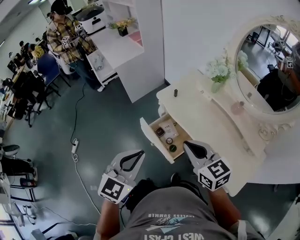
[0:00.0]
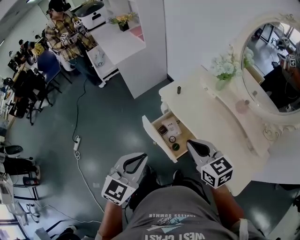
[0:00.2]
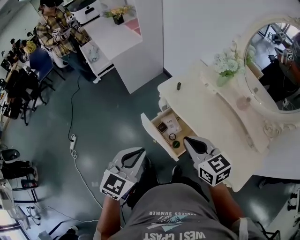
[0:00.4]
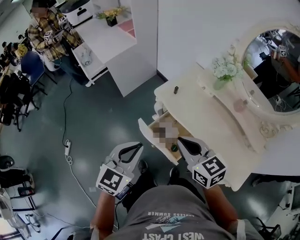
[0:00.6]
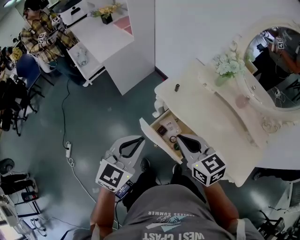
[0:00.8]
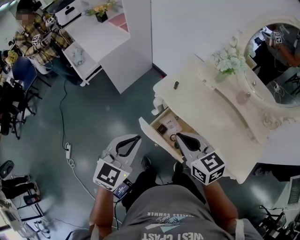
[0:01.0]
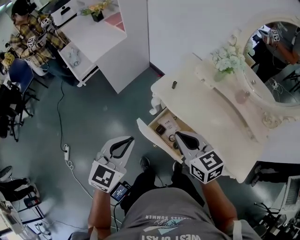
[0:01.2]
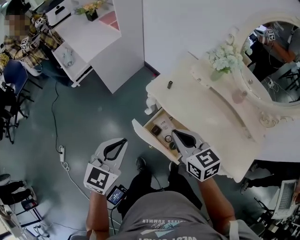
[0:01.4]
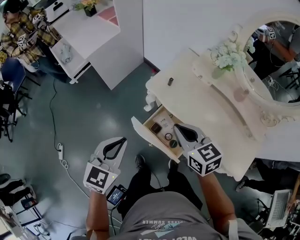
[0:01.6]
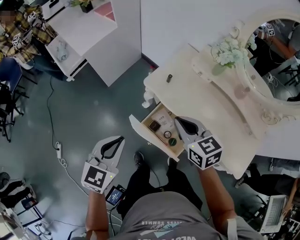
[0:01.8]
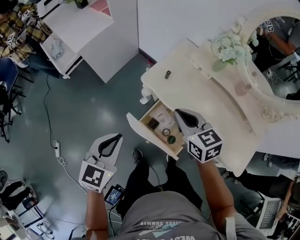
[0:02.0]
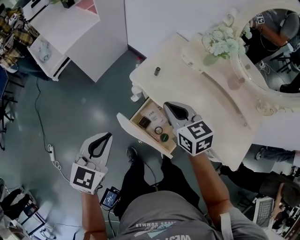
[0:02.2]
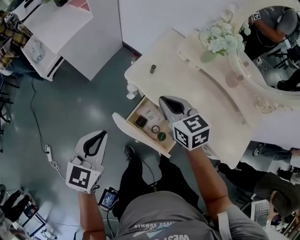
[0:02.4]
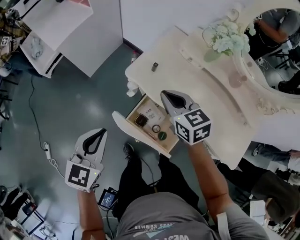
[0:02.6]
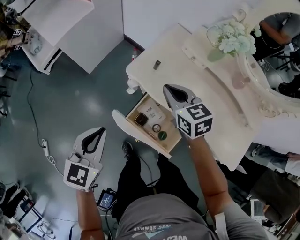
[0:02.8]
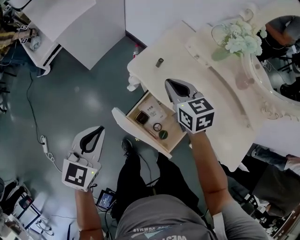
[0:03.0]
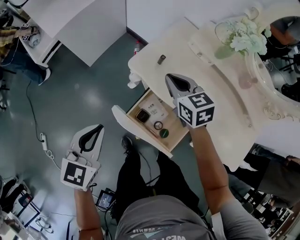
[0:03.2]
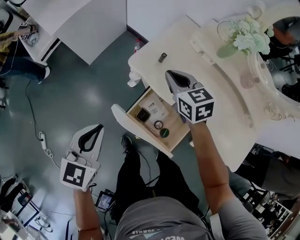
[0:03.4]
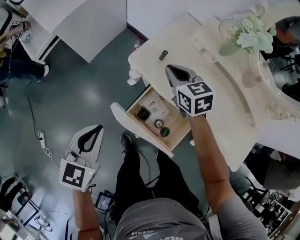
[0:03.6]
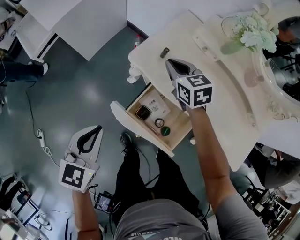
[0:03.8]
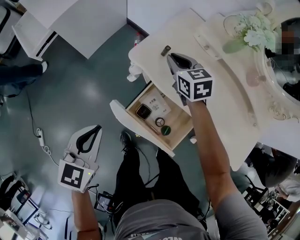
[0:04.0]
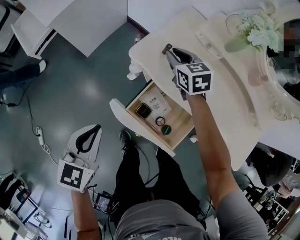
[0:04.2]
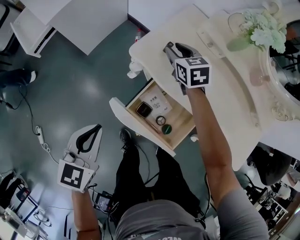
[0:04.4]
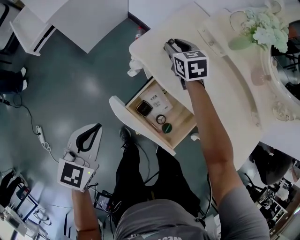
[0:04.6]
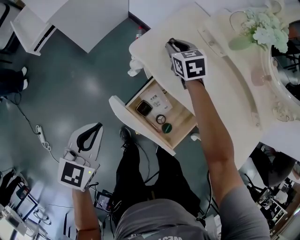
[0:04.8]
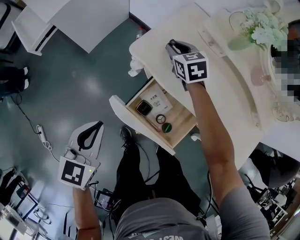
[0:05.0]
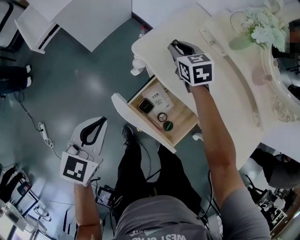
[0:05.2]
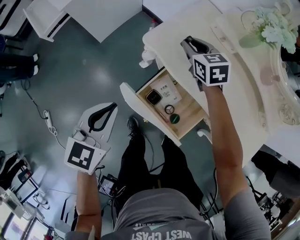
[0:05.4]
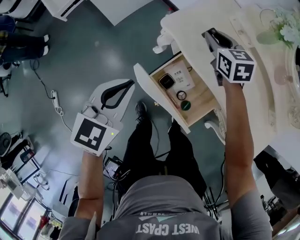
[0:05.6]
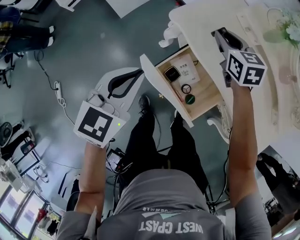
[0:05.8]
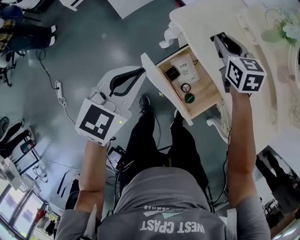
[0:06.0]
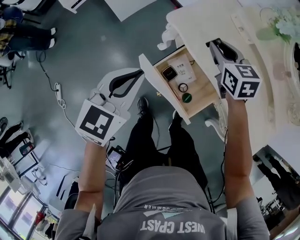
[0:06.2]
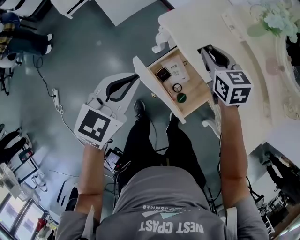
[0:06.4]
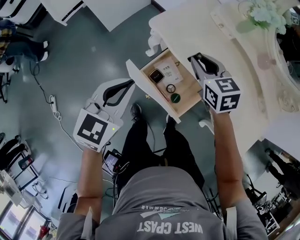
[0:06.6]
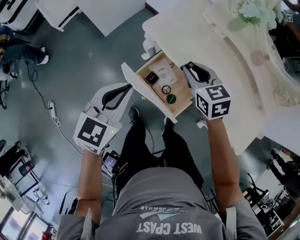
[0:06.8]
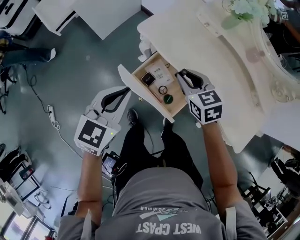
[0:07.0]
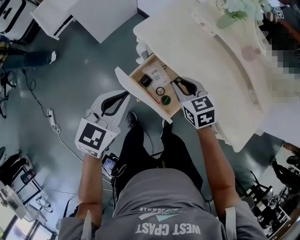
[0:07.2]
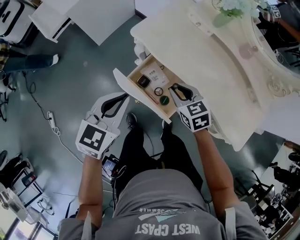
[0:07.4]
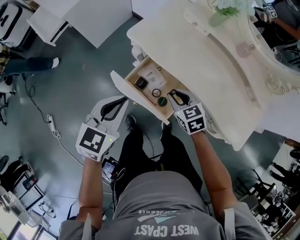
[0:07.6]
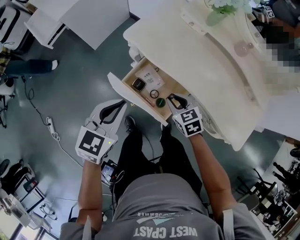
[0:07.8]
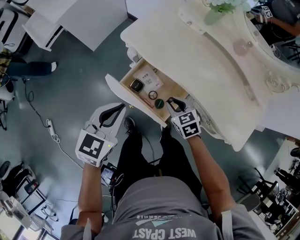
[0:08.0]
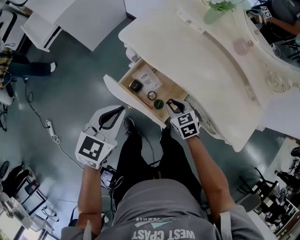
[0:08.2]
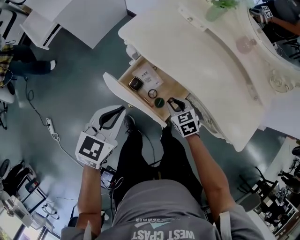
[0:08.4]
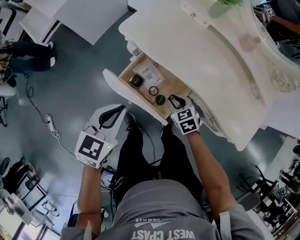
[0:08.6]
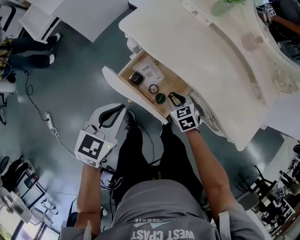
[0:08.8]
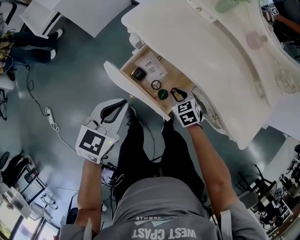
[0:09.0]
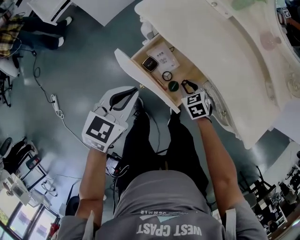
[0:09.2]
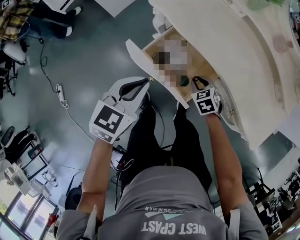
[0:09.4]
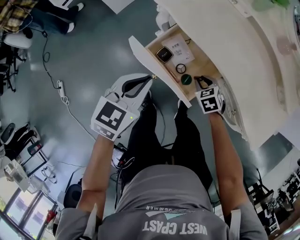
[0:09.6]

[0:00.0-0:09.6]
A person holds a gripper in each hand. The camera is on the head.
0:00.0 to 0:01.6: The left gripper moves forward, to the left and downward, approximately 25 cm. Meanwhile the right gripper heads forward, downward and to the left, covering approximately 20 cm.
0:01.6 to 0:03.2: The right gripper heads forward and downward, covering some 25 cm. Meanwhile the left gripper moves downward and forward, about 15 cm.
0:03.2 to 0:04.8: The right gripper moves downward and forward, about 15 cm, and opens. Meanwhile the left gripper heads downward, covering about 5 cm.
0:04.8 to 0:06.4: The left gripper moves upward and to the right, some 10 cm. The right gripper moves backward and upward, approximately 20 cm.
0:06.4 to 0:08.0: The right gripper travels backward and downward by some 25 cm, while the left gripper goes approximately 10 cm to the right and backward.
0:08.0 to 0:09.6: The left gripper moves downward, approximately 5 cm. The right gripper shifts approximately 10 cm downward.

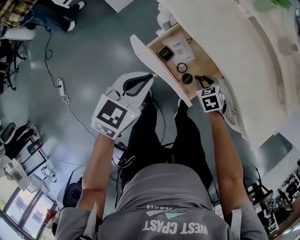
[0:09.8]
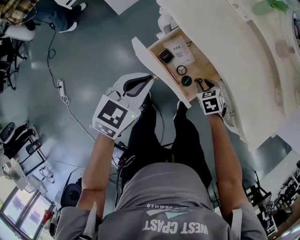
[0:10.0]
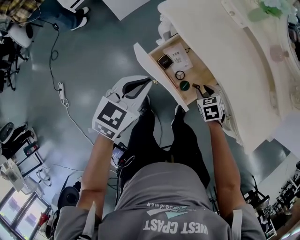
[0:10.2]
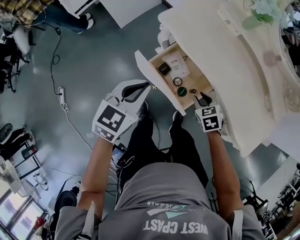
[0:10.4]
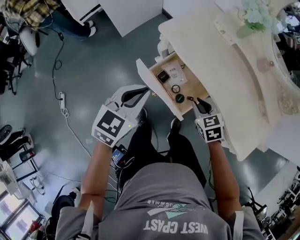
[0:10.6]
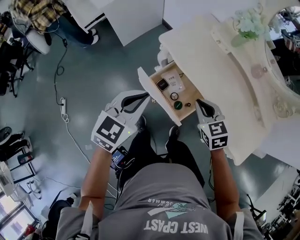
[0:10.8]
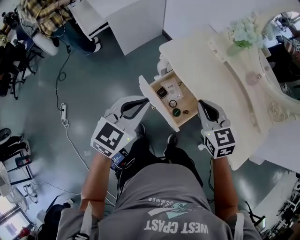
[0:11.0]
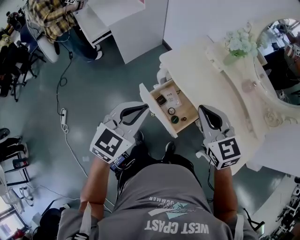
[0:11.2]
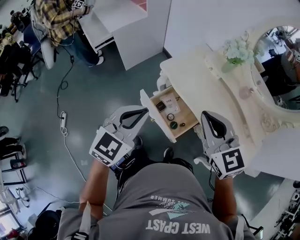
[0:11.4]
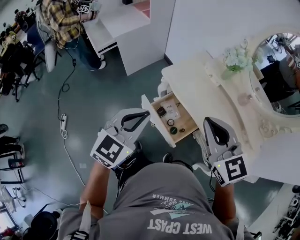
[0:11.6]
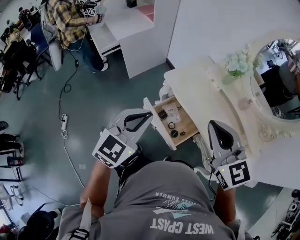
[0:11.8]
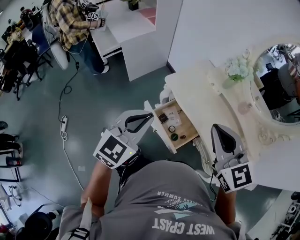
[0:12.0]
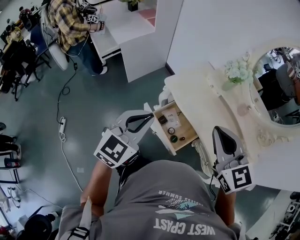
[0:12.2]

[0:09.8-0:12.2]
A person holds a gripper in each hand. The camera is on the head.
0:09.8 to 0:11.0: The left gripper is displaced upward by roughly 20 cm; the right gripper travels upward by approximately 35 cm, tips its fingers upward by some 40 degrees, and closes its fingers.
0:11.0 to 0:12.2: The right gripper shifts about 20 cm upward. Meanwhile the left gripper heads upward, covering about 10 cm.

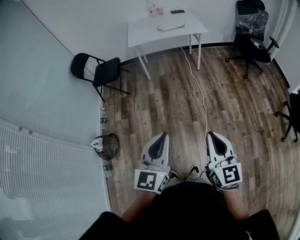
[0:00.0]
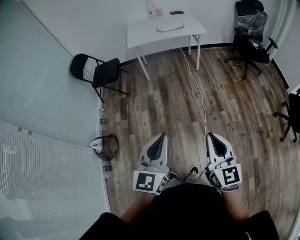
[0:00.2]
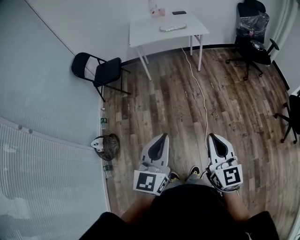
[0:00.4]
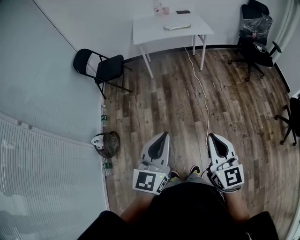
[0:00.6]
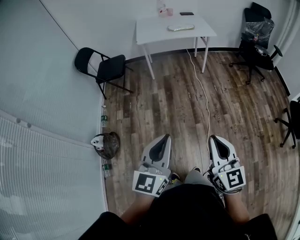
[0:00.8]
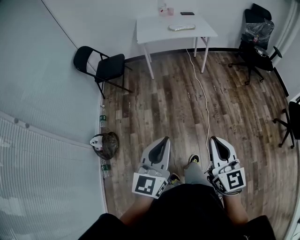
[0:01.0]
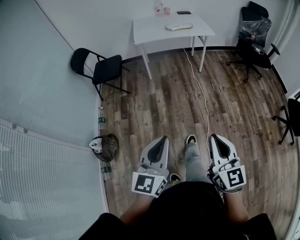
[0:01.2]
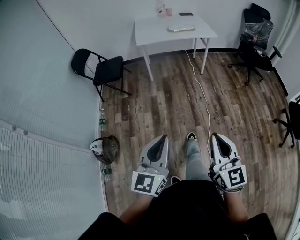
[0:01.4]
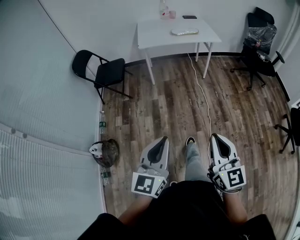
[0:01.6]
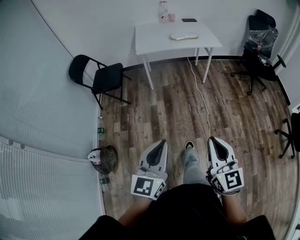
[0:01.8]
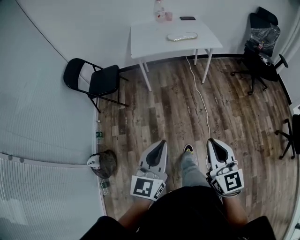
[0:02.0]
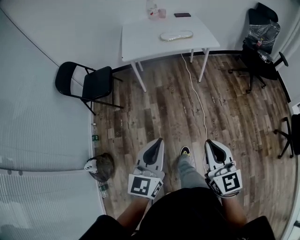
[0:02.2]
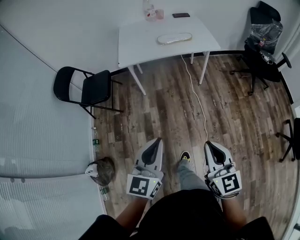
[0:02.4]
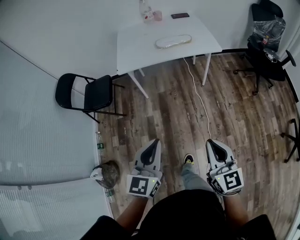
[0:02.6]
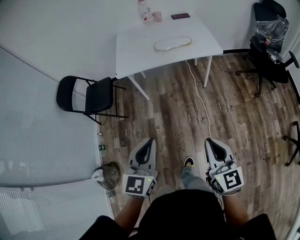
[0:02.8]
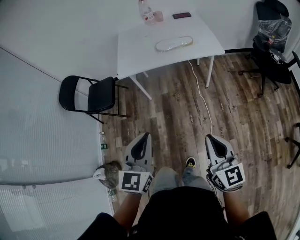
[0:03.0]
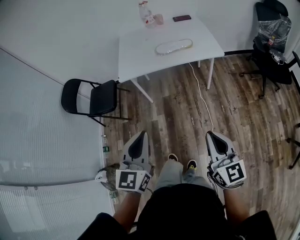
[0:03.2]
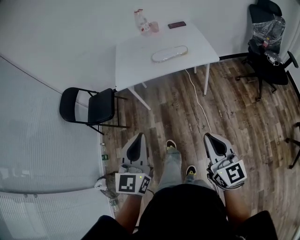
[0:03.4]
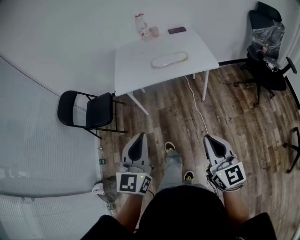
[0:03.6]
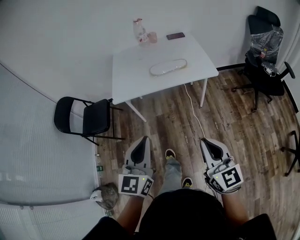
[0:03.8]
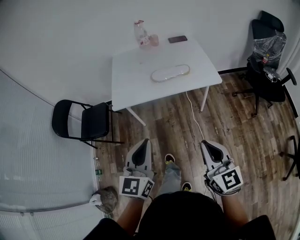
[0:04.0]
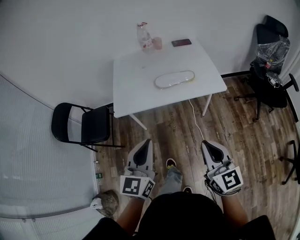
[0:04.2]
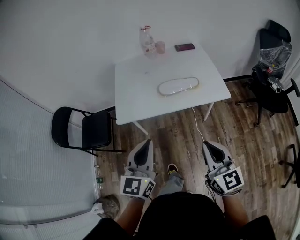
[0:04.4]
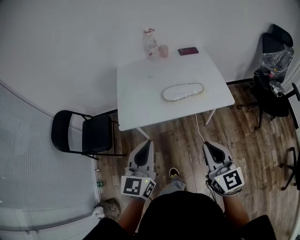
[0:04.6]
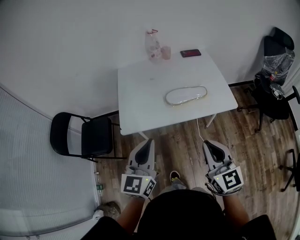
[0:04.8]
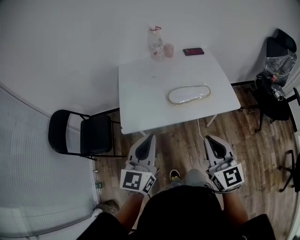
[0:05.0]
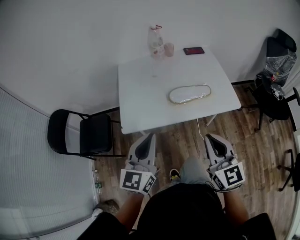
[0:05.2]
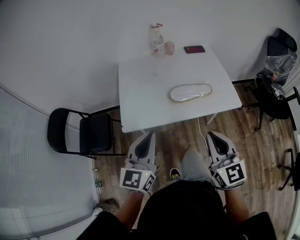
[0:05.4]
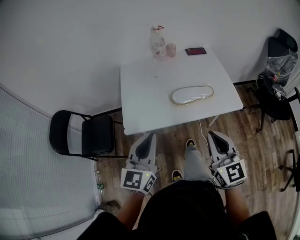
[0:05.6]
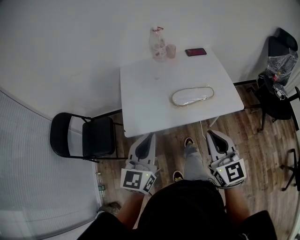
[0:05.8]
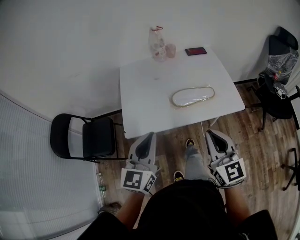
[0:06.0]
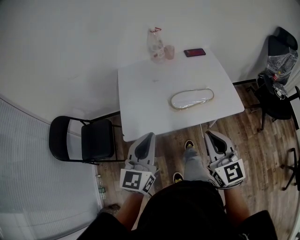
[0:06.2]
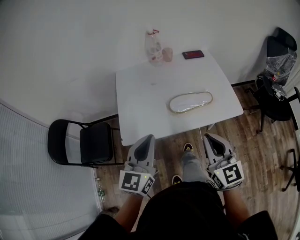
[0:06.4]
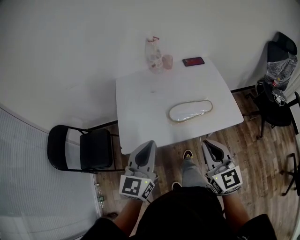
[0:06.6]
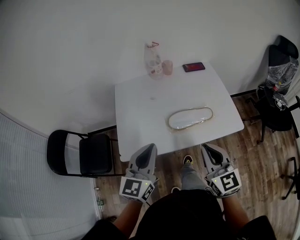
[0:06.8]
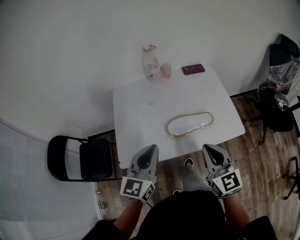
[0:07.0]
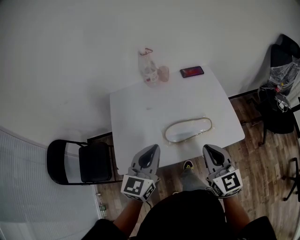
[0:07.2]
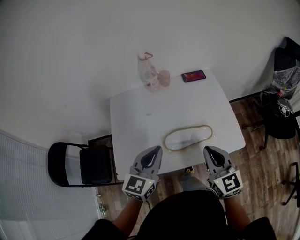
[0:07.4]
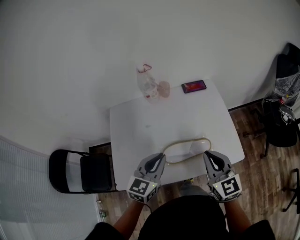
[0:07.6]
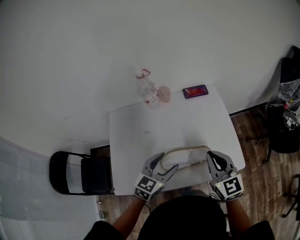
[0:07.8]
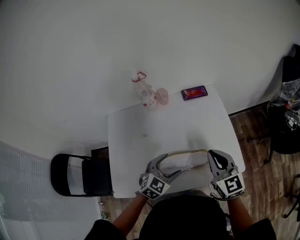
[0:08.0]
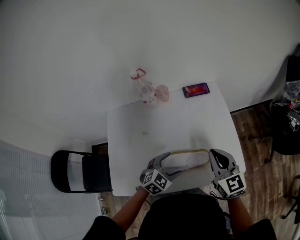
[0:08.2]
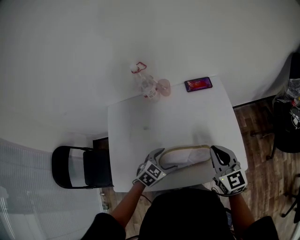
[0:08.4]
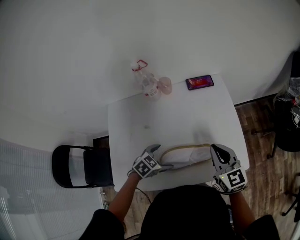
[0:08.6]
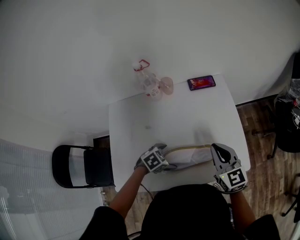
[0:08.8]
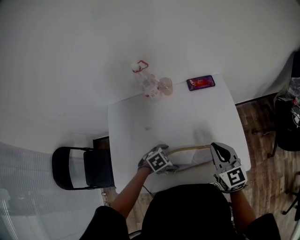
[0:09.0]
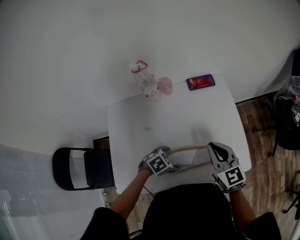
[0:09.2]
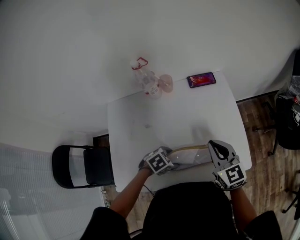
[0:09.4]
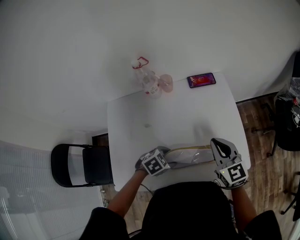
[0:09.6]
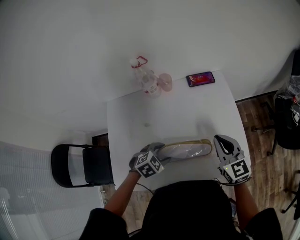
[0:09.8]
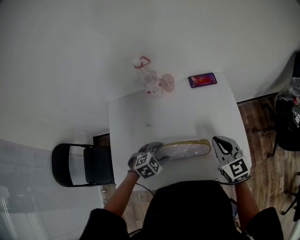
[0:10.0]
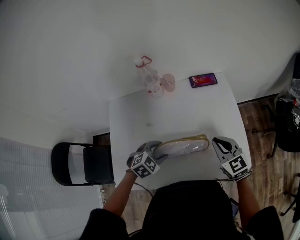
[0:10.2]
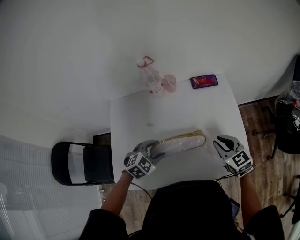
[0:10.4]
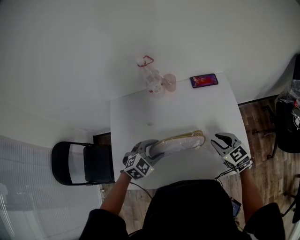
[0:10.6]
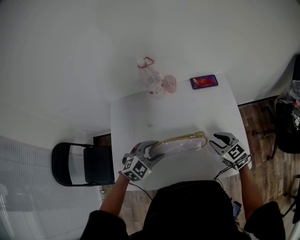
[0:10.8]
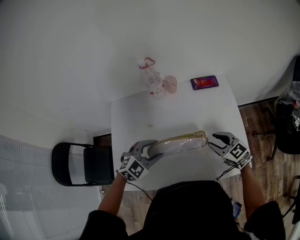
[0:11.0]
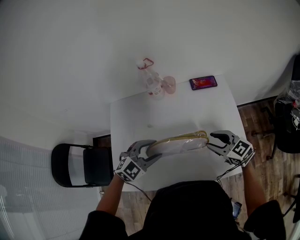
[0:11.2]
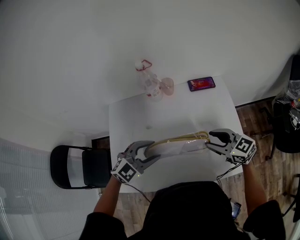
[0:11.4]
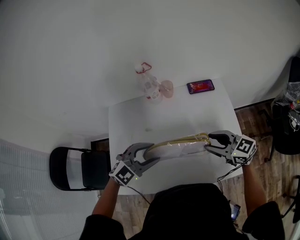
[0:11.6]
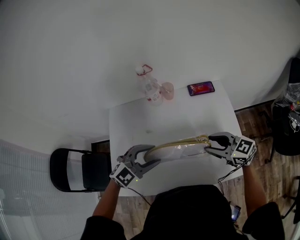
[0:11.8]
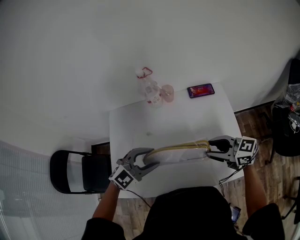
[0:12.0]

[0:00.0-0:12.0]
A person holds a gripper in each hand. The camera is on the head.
0:00.0 to 0:01.6: The two grippers go roughly 15 cm to the left and forward.
0:01.6 to 0:03.0: The two grippers travel together, forward, roughly 40 cm.
0:03.0 to 0:04.4: Both grippers travel together forward, roughly 25 cm.
0:04.4 to 0:06.0: The grippers both shift forward and to the left by approximately 15 cm.
0:06.0 to 0:07.6: The right gripper heads forward, covering some 25 cm; the left gripper moves forward and to the right, roughly 30 cm, and swivels about 20 degrees.
0:07.6 to 0:09.0: The left gripper moves downward, roughly 25 cm, tilts its fingers some 50 degrees downward, and opens its fingers. The right gripper ends up some 15 cm from where it was.
0:09.0 to 0:10.4: The right gripper is displaced downward by approximately 5 cm, and changes its angle by approximately 20 degrees. The left gripper travels upward by some 5 cm, rotates roughly 30 degrees, and closes.
0:10.4 to 0:12.0: The right gripper shifts some 5 cm upward, swivels some 40 degrees, and opens. The left gripper heads upward, covering approximately 10 cm, and swivels approximately 30 degrees.
